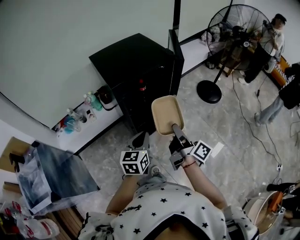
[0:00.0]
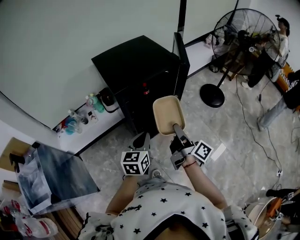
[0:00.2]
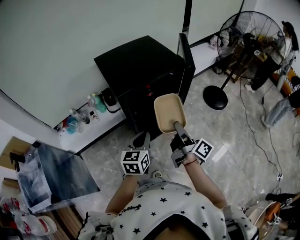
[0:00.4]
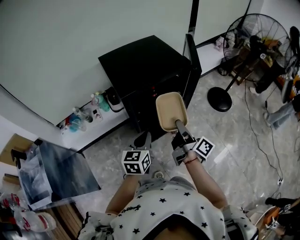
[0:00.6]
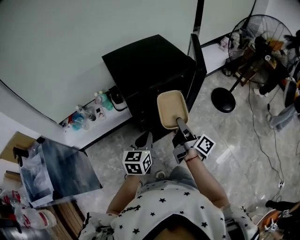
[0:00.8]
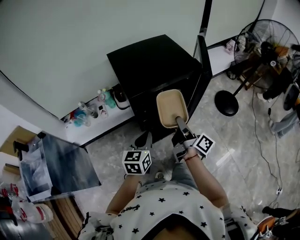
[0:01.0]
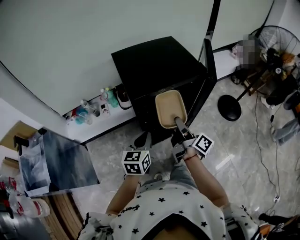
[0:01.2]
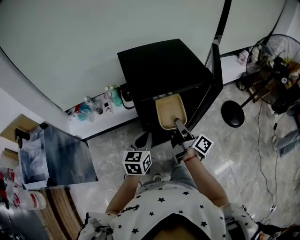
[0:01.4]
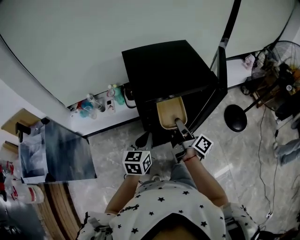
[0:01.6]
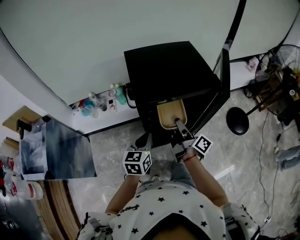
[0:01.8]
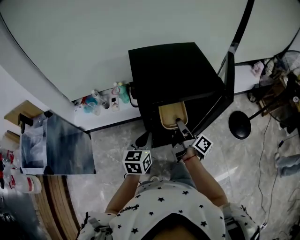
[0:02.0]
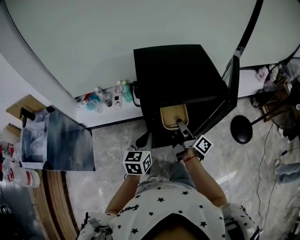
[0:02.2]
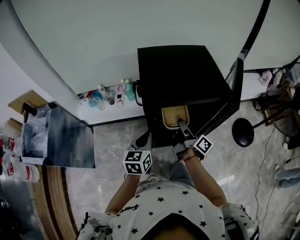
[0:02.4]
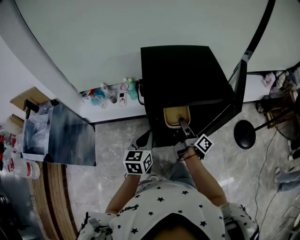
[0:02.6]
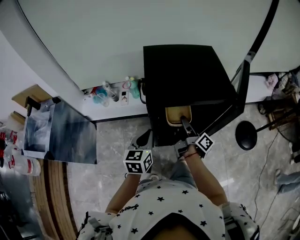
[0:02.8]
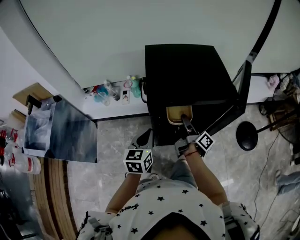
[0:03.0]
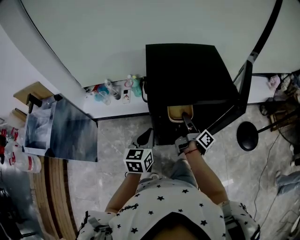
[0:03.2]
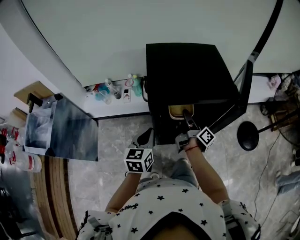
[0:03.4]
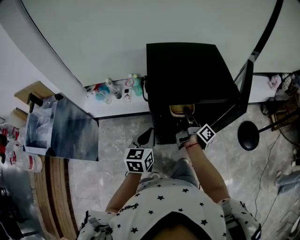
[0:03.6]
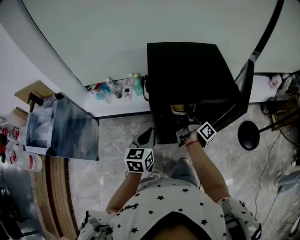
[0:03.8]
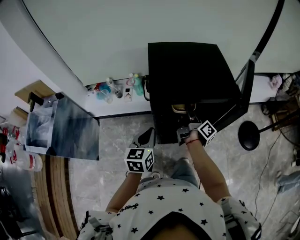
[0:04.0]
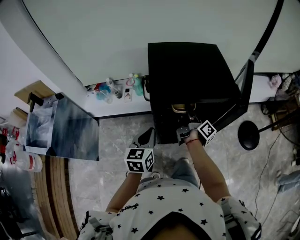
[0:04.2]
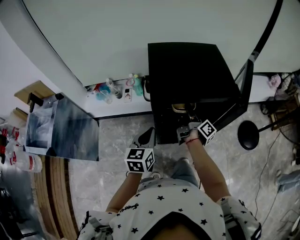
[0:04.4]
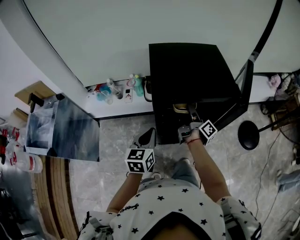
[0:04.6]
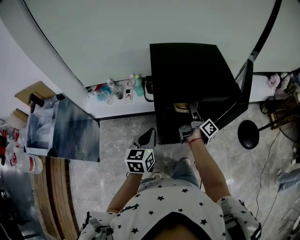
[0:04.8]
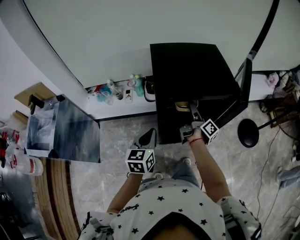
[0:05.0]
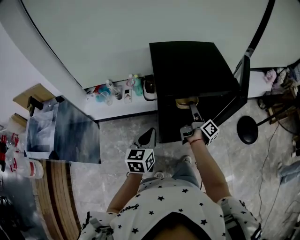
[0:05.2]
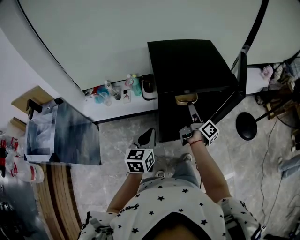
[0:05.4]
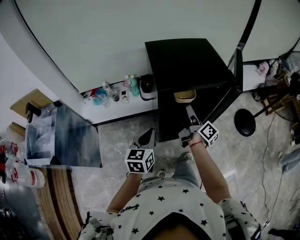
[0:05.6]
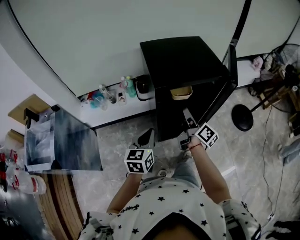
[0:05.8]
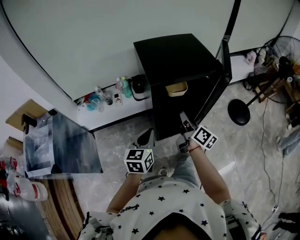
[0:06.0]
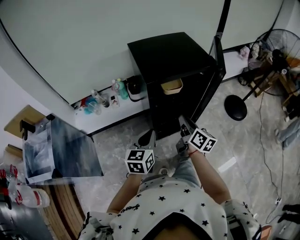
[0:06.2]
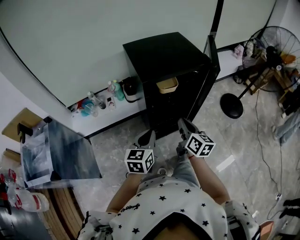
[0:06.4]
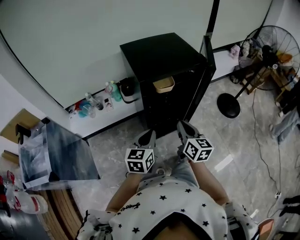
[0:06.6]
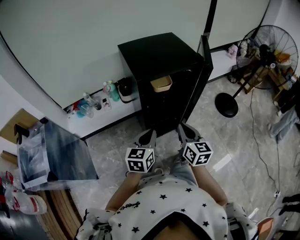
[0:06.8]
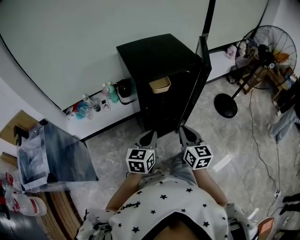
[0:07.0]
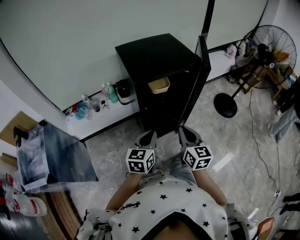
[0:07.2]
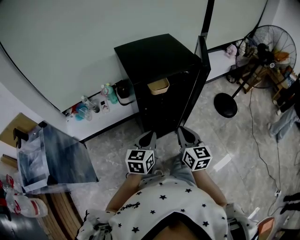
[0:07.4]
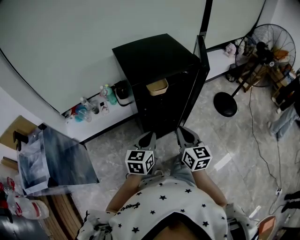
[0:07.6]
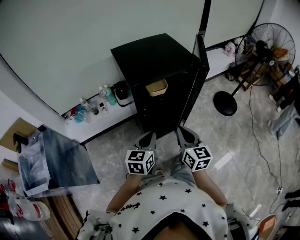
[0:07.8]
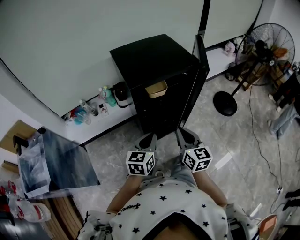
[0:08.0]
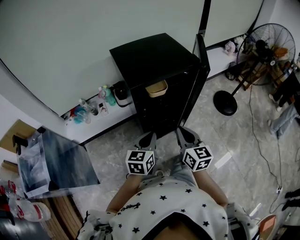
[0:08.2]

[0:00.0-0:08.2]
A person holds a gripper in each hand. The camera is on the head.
0.0 to 1.6 s: The right gripper is displaced forward by roughly 20 cm. Meanwhile the left gripper travels forward and to the left by some 15 cm.
1.6 to 3.2 s: The right gripper travels forward by about 10 cm.
3.2 to 5.0 s: The right gripper opens.
5.0 to 6.6 s: The right gripper goes about 25 cm backward, rotates around the line of its fingers by approximately 60 degrees, counterclockwise from behind, and closes. The left gripper travels backward by roughly 10 cm, and turns by approximately 20 degrees.
6.6 to 8.2 s: The grippers stay close to where they were, moving slightly.

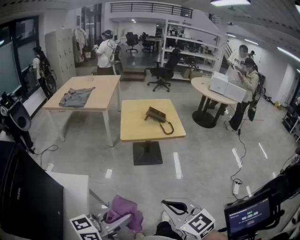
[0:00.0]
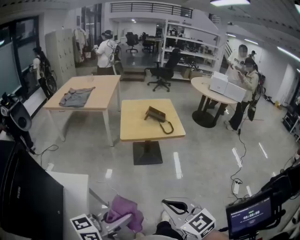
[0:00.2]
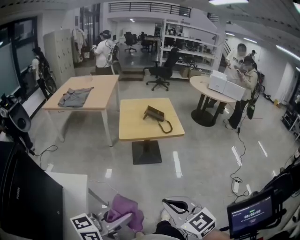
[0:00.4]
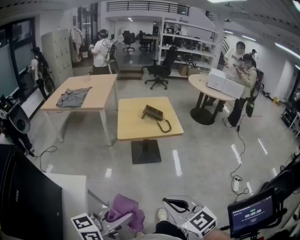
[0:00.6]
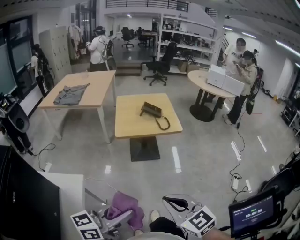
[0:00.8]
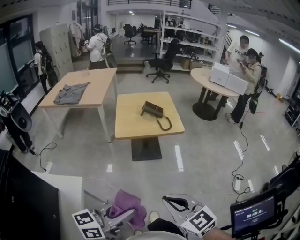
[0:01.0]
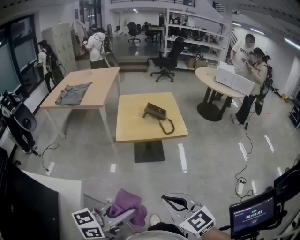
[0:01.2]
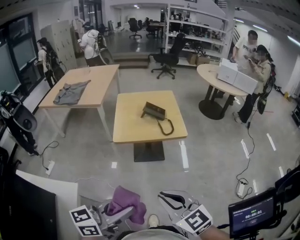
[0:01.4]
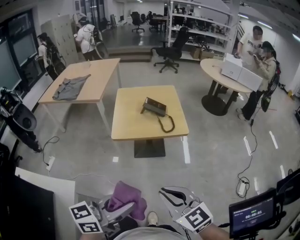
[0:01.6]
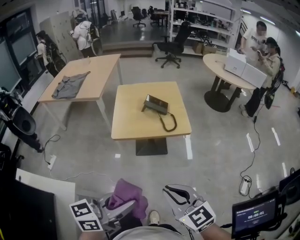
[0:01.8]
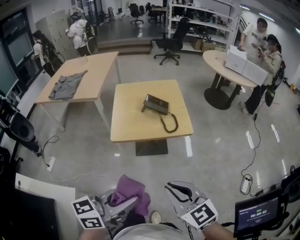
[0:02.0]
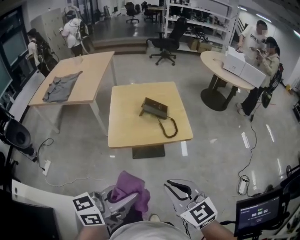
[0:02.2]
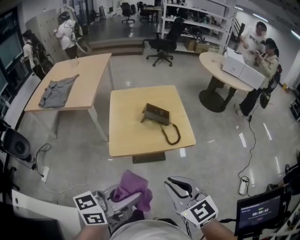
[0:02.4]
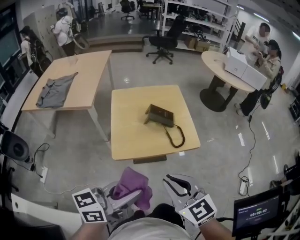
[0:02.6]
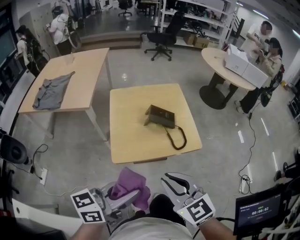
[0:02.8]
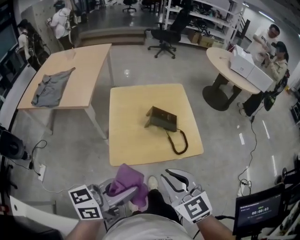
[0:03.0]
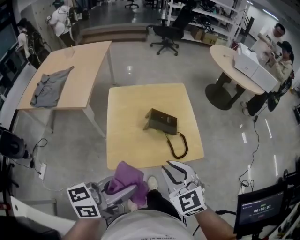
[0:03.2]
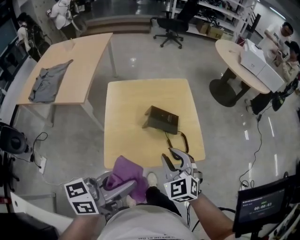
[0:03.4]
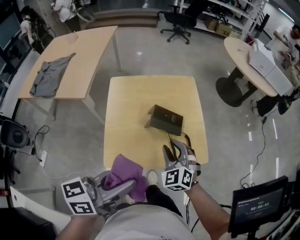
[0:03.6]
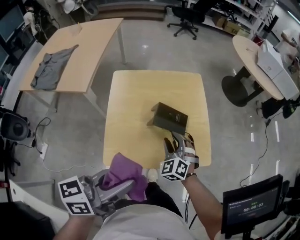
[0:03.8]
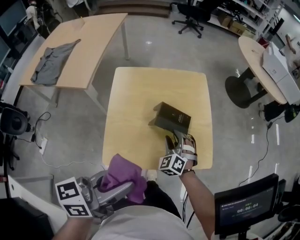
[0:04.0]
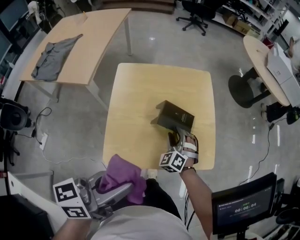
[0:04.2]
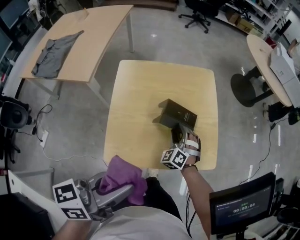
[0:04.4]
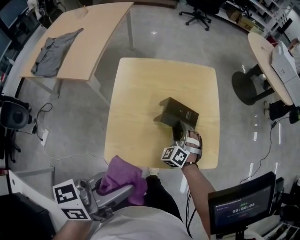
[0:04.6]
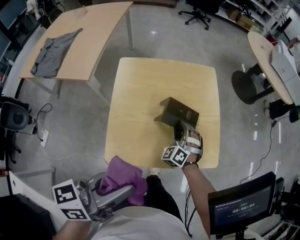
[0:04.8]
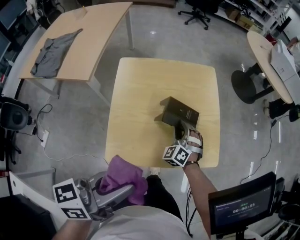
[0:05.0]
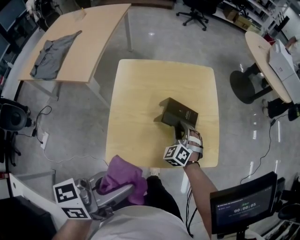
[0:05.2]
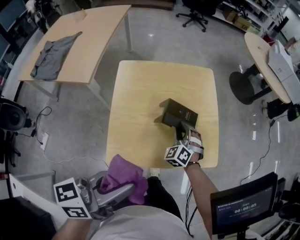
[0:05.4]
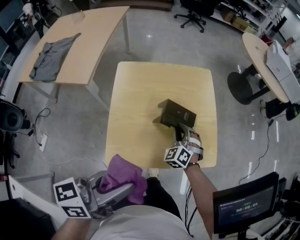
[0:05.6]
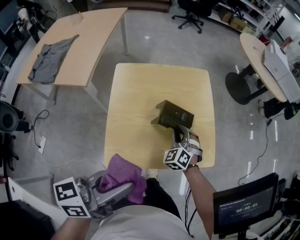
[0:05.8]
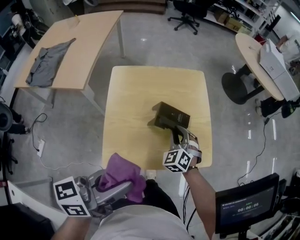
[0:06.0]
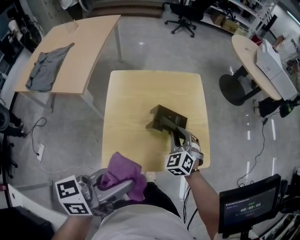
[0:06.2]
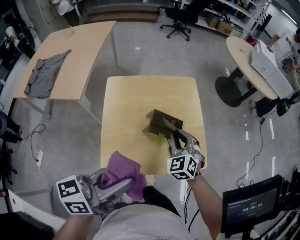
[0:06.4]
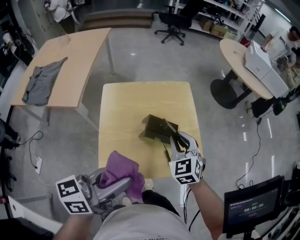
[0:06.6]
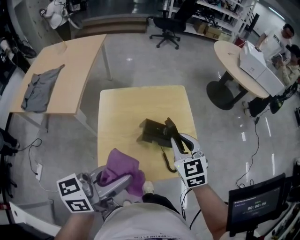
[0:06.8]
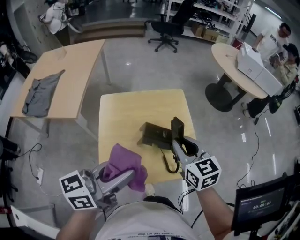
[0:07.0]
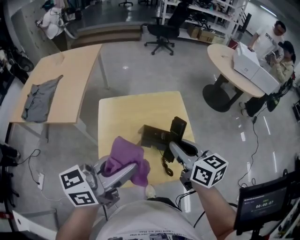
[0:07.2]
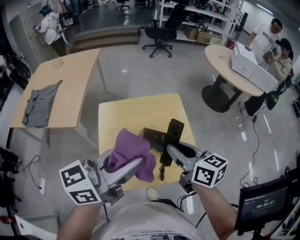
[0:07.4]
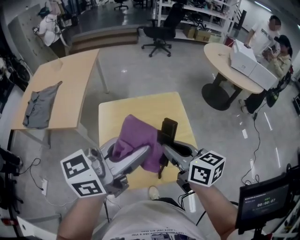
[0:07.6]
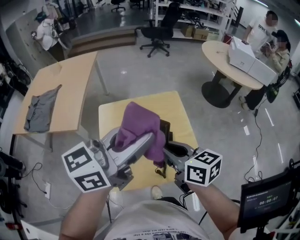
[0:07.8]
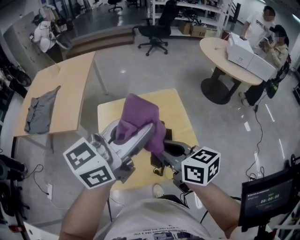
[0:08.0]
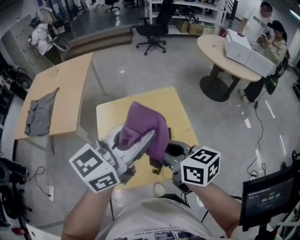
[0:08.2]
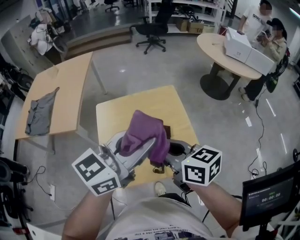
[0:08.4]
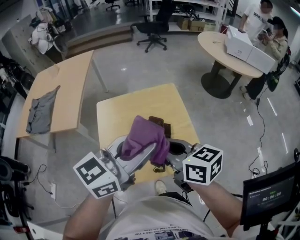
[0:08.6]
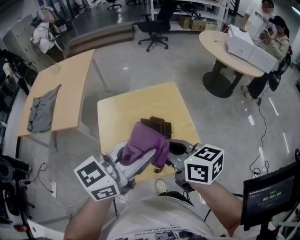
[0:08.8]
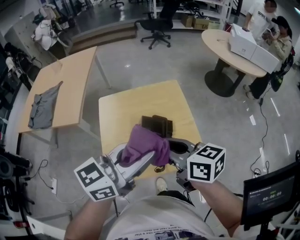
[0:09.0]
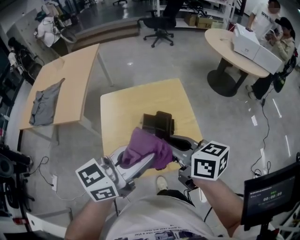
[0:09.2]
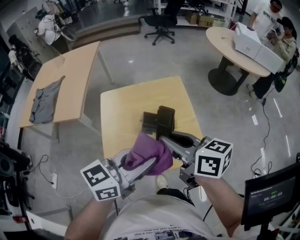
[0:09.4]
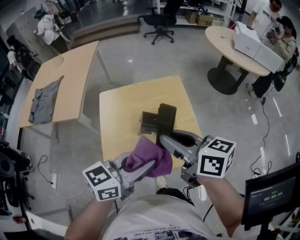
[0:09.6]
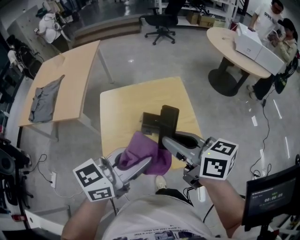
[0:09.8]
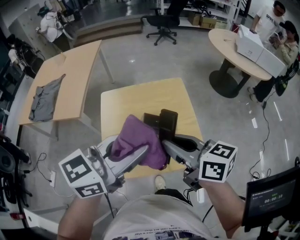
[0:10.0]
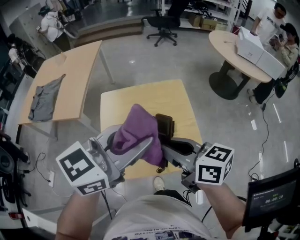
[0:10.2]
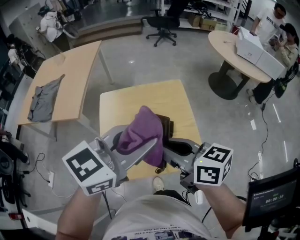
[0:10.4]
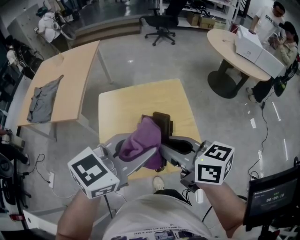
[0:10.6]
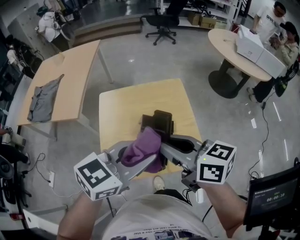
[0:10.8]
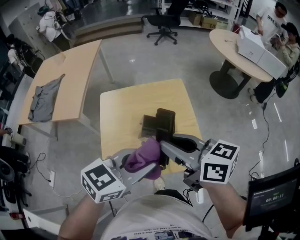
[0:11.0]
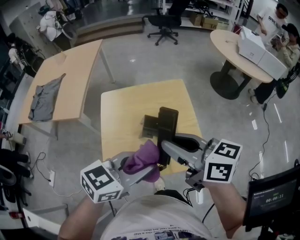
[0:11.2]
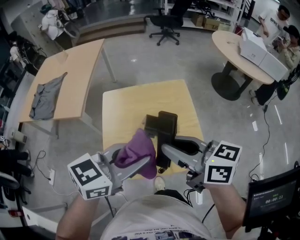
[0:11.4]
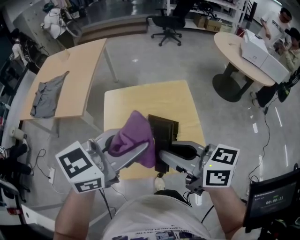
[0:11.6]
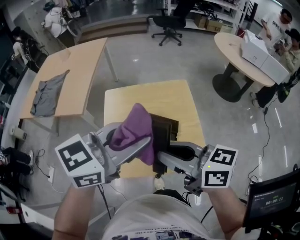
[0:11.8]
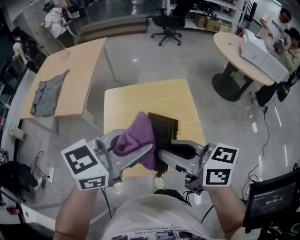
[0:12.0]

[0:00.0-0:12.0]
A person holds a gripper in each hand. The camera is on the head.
0.0 to 1.6 s: The right gripper is displaced forward by roughly 15 cm; the left gripper shifts some 20 cm forward and to the right.
1.6 to 3.0 s: The right gripper heads forward, covering roughly 25 cm; the left gripper moves forward and to the left, approximately 25 cm.
3.0 to 4.4 s: The left gripper heads forward, covering about 10 cm, while the right gripper shifts about 35 cm forward and downward, turns by about 50 degrees, and opens its fingers.
4.4 to 6.0 s: The right gripper changes place by about 5 cm, and closes up.
6.0 to 7.6 s: The left gripper heads forward and upward, covering some 20 cm, and turns by about 20 degrees. The right gripper goes approximately 20 cm upward, and rotates around the line of its fingers by roughly 60 degrees, clockwise from behind.
7.6 to 9.0 s: The left gripper shifts some 5 cm downward.
9.0 to 10.4 s: The left gripper goes downward and returns, approximately 5 cm each way.
10.4 to 12.0 s: The left gripper goes downward and returns, about 10 cm each way.

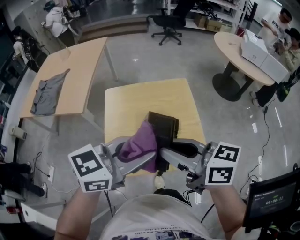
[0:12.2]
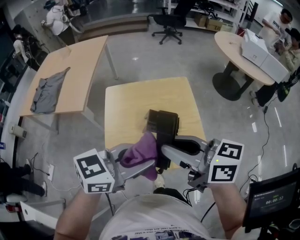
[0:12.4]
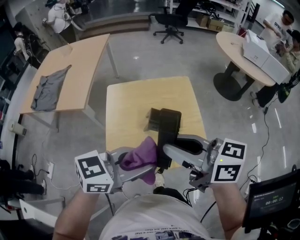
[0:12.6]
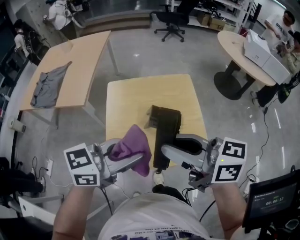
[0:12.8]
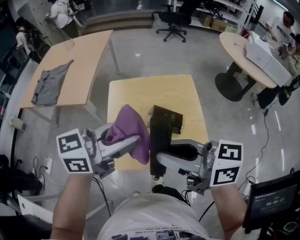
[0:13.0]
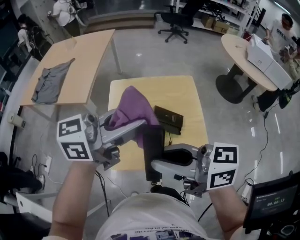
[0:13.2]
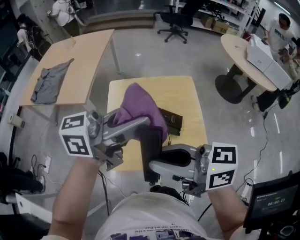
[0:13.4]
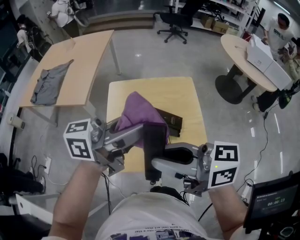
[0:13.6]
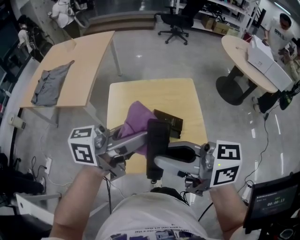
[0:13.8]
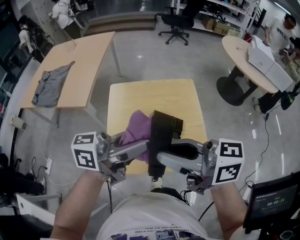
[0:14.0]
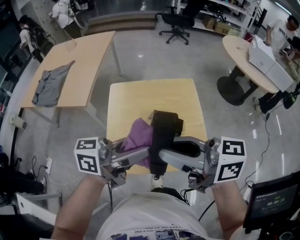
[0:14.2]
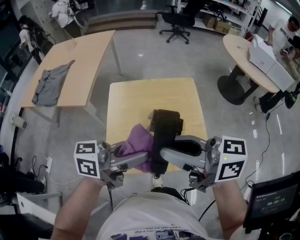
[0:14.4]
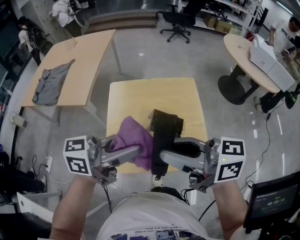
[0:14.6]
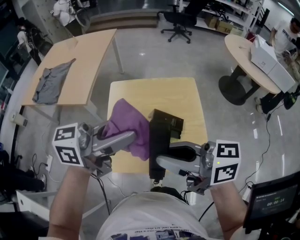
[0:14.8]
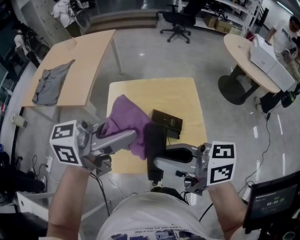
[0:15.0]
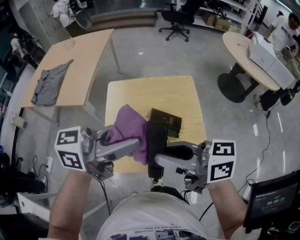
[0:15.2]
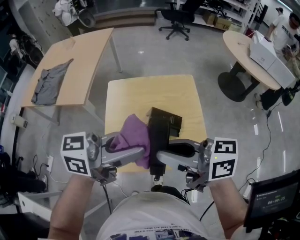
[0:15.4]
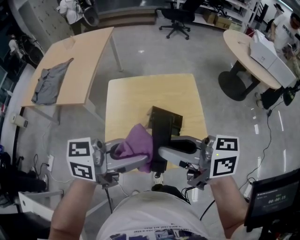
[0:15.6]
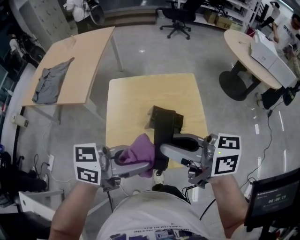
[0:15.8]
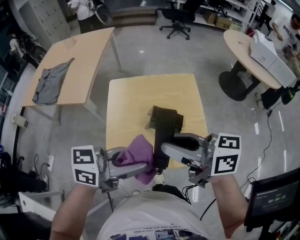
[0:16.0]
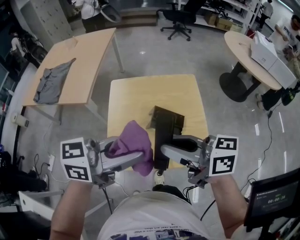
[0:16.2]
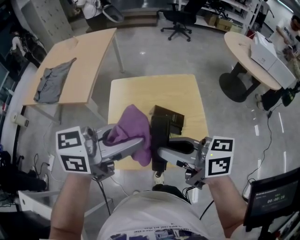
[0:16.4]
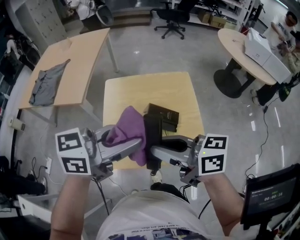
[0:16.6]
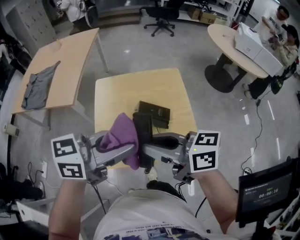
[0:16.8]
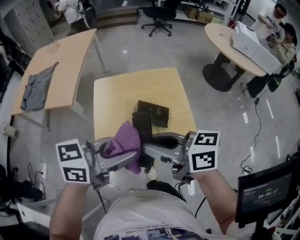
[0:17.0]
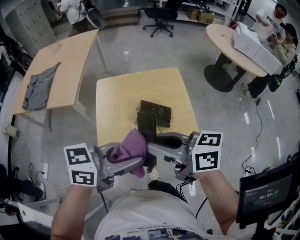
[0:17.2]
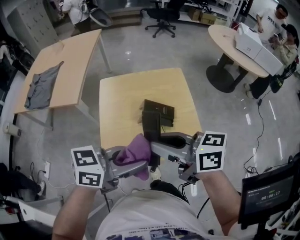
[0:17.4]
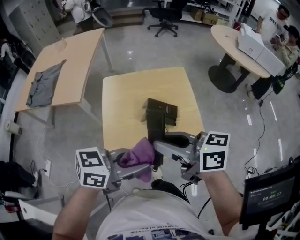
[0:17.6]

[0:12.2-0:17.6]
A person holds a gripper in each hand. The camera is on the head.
12.2 to 13.6 s: The left gripper moves some 5 cm, and changes its angle by about 30 degrees. Meanwhile the right gripper changes place by about 5 cm.
13.6 to 15.0 s: The left gripper goes downward and returns, roughly 5 cm each way.
15.0 to 16.2 s: The left gripper shifts some 5 cm downward.
16.2 to 17.6 s: The left gripper is displaced downward by roughly 5 cm.
